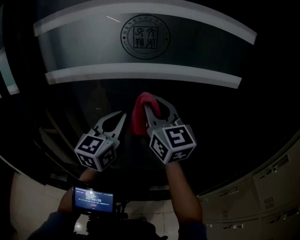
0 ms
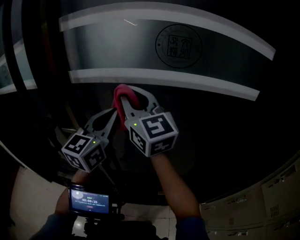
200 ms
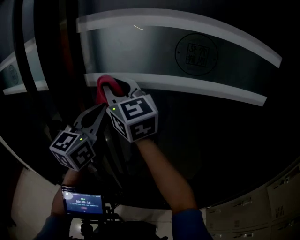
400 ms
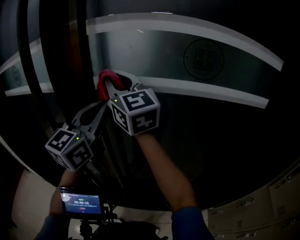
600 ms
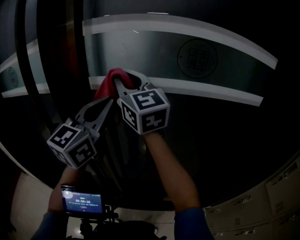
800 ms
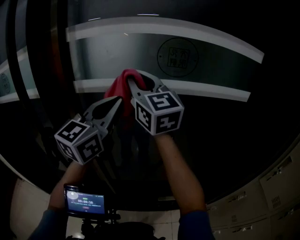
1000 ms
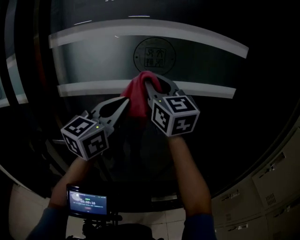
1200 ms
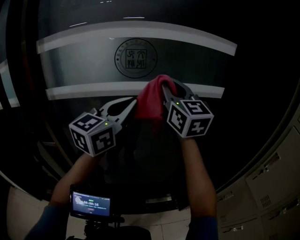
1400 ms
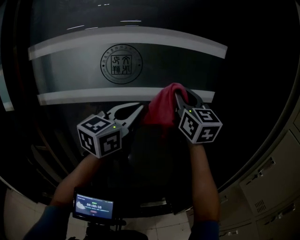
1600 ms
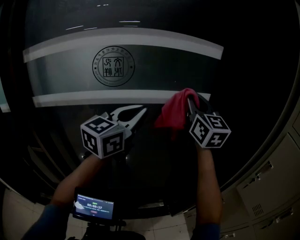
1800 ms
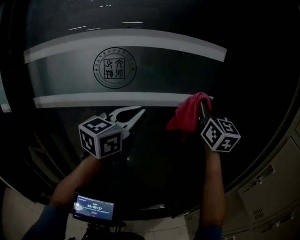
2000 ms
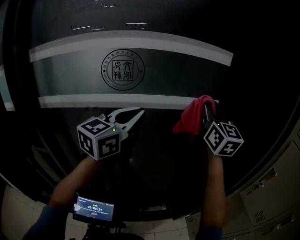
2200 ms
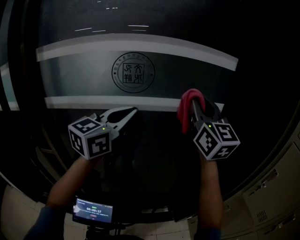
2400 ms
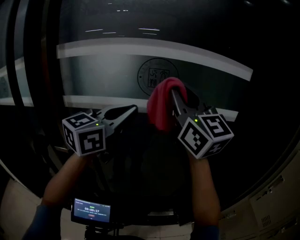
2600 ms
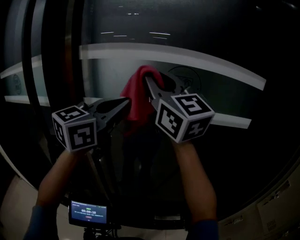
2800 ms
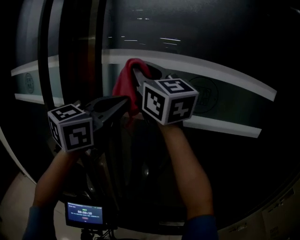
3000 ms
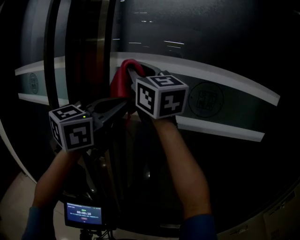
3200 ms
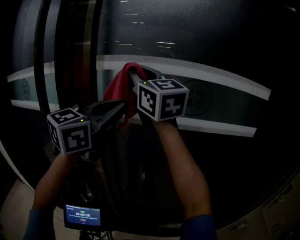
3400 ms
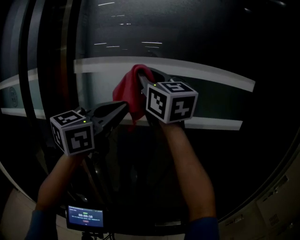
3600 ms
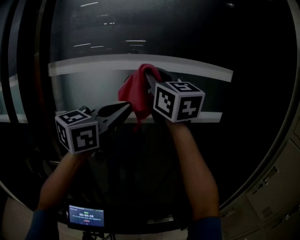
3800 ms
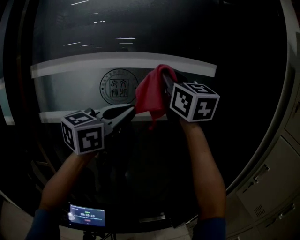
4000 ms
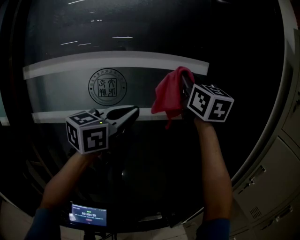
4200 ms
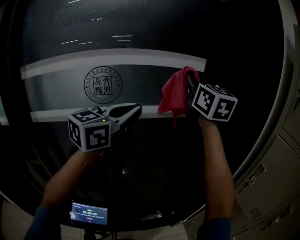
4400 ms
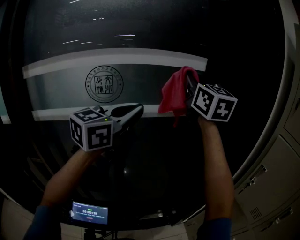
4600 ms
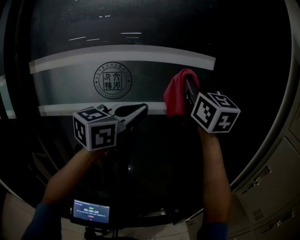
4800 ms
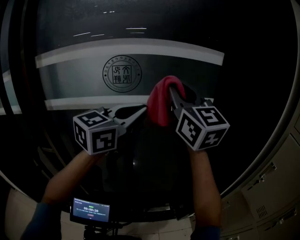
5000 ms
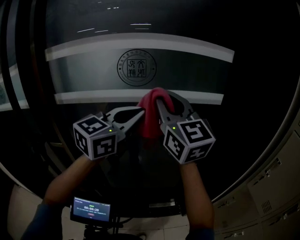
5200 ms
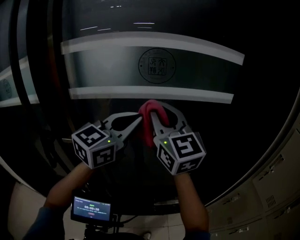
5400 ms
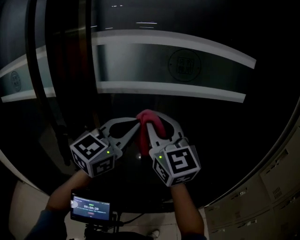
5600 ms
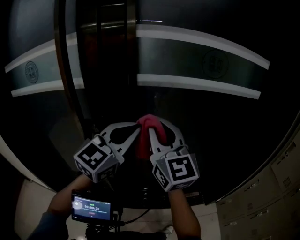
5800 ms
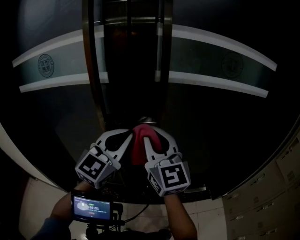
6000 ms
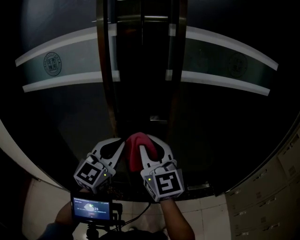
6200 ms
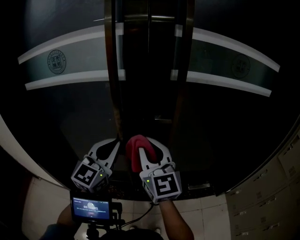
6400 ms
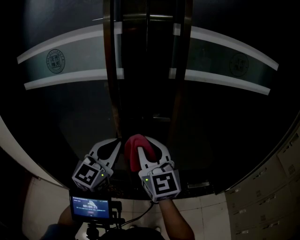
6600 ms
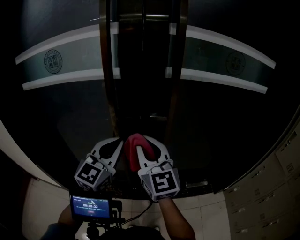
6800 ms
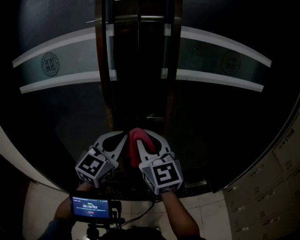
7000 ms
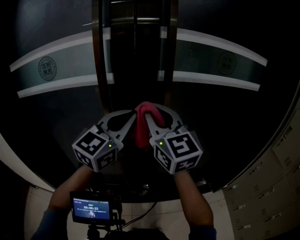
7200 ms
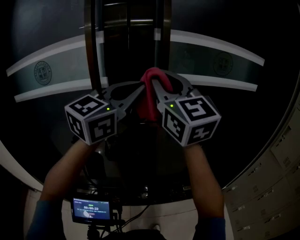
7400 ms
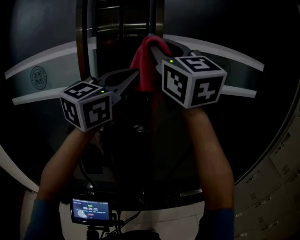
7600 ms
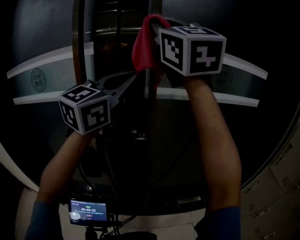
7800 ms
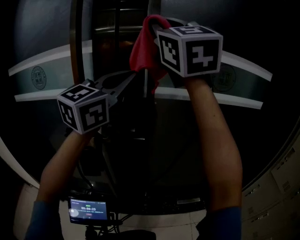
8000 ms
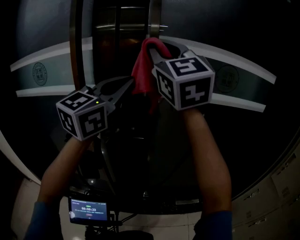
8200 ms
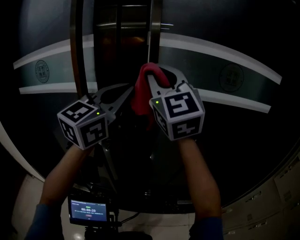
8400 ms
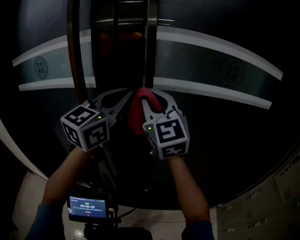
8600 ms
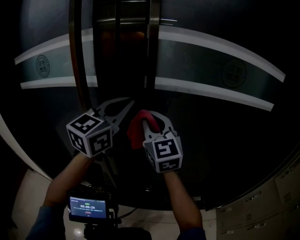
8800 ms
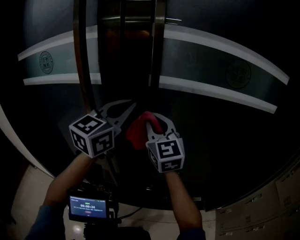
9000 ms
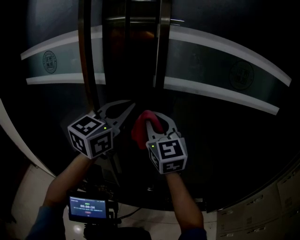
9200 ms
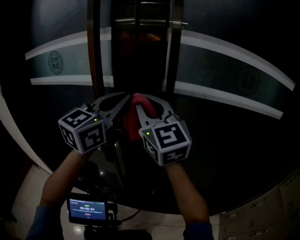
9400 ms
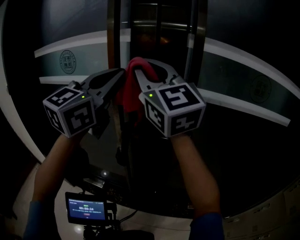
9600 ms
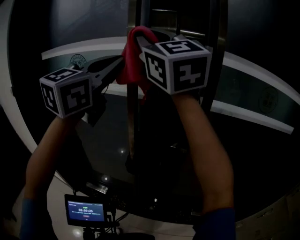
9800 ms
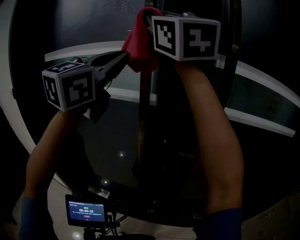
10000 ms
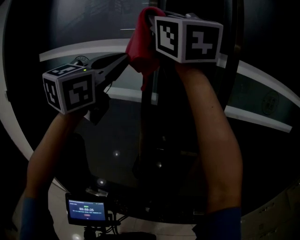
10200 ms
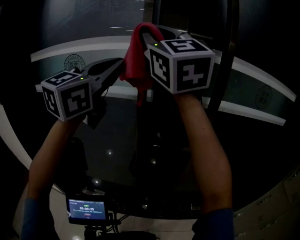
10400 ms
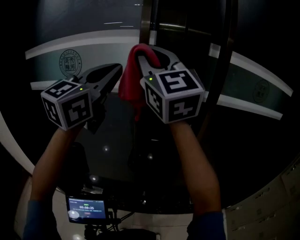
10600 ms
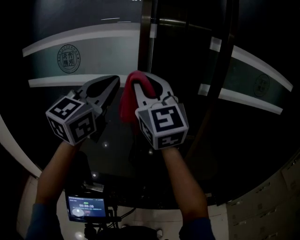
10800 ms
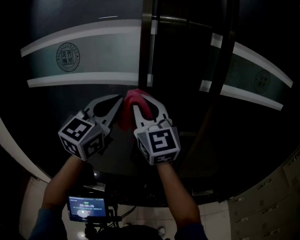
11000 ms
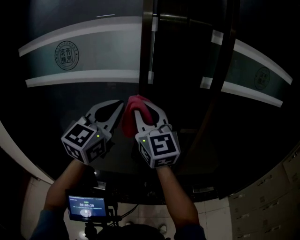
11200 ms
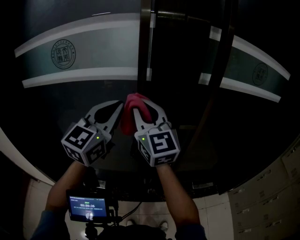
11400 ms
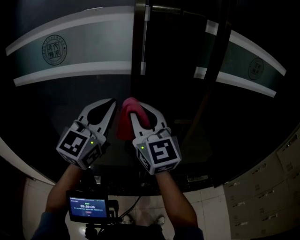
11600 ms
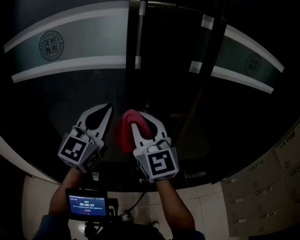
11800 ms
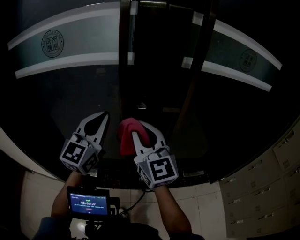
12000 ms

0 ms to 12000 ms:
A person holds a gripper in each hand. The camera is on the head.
0 ms to 1600 ms: The left gripper ends up approximately 15 cm from where it was.
1600 ms to 3000 ms: The right gripper changes place by roughly 40 cm, and swivels about 30 degrees; the left gripper ends up about 30 cm from where it was.
3000 ms to 4400 ms: The left gripper moves approximately 35 cm, and turns by approximately 20 degrees. Meanwhile the right gripper ends up roughly 50 cm from where it was, and changes its angle by some 40 degrees.
4400 ms to 6000 ms: The pair of grippers is taken to the left and backward, roughly 60 cm. The left gripper swivels about 30 degrees.
6000 ms to 7600 ms: Both grippers move upward, roughly 25 cm.
7600 ms to 9000 ms: The right gripper goes approximately 30 cm downward, while the left gripper is displaced downward by some 15 cm.
9000 ms to 10400 ms: The left gripper moves to the left and upward, about 30 cm; the right gripper shifts about 40 cm upward and to the left.
10400 ms to 12000 ms: The grippers both shift downward by about 30 cm. The right gripper swivels approximately 20 degrees.

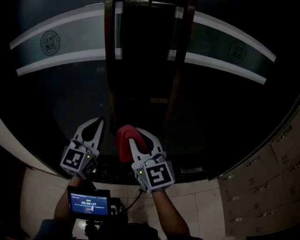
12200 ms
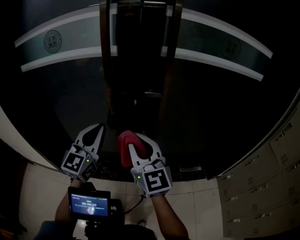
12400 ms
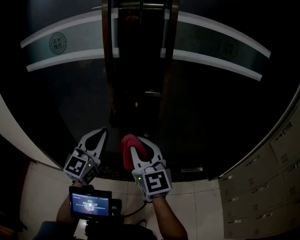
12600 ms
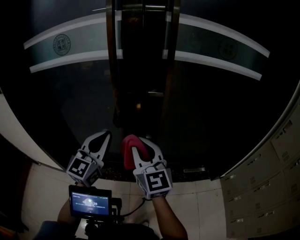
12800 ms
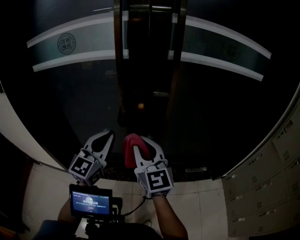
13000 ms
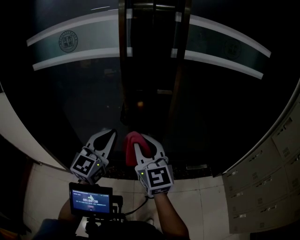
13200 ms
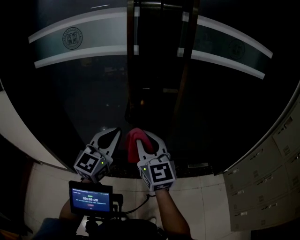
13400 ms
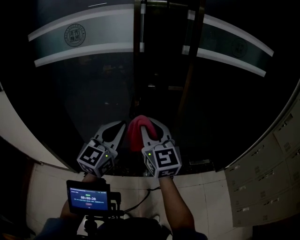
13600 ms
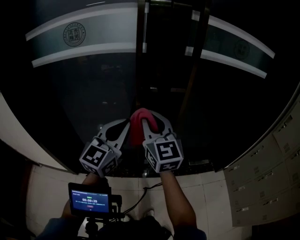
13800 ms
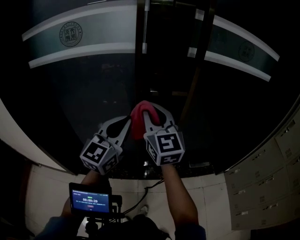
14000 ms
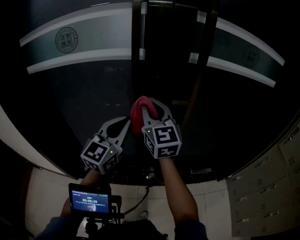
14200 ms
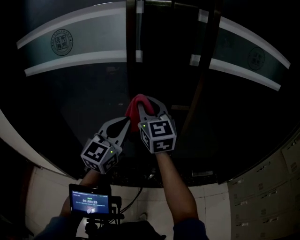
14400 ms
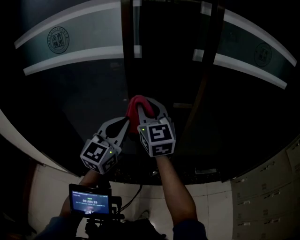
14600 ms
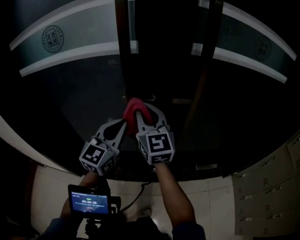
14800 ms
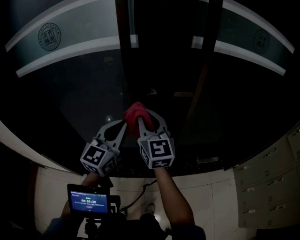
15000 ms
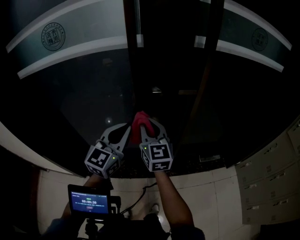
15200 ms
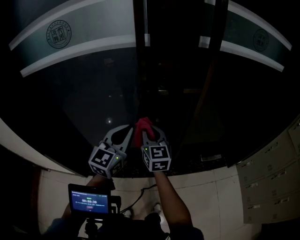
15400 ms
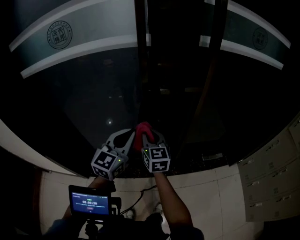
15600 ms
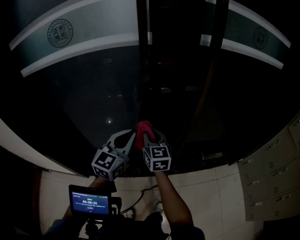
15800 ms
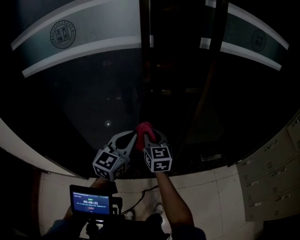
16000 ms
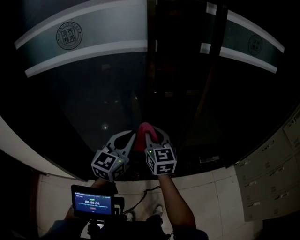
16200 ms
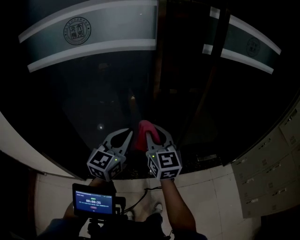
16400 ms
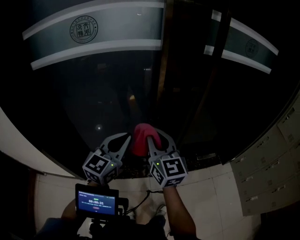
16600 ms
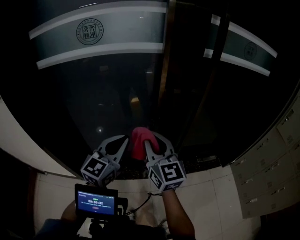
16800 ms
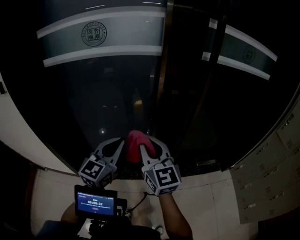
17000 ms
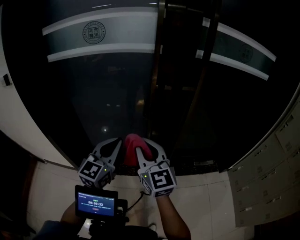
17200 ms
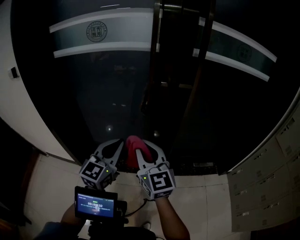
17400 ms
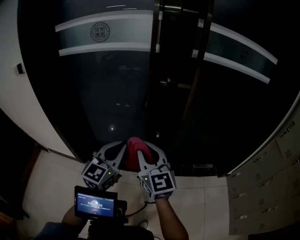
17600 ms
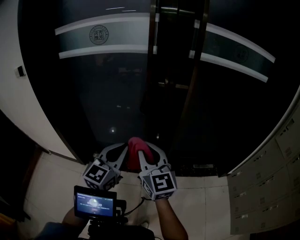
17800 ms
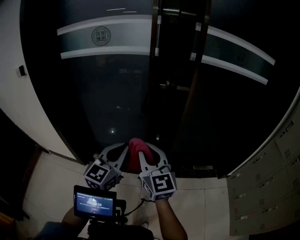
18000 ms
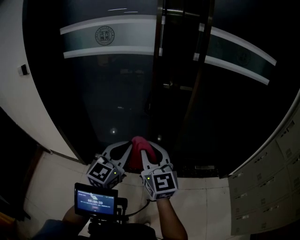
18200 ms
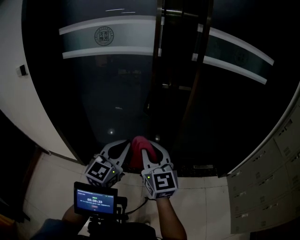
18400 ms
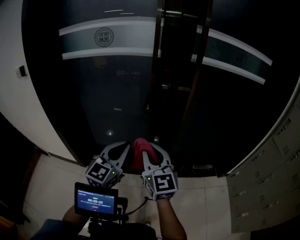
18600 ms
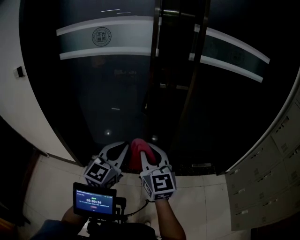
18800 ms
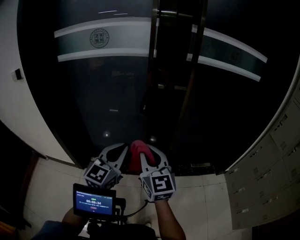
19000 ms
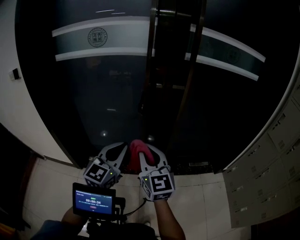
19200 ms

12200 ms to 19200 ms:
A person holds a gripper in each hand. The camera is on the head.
12200 ms to 13600 ms: The right gripper moves about 5 cm. The left gripper is displaced backward by some 10 cm.
13600 ms to 15000 ms: Both grippers travel together forward, about 15 cm.
15000 ms to 16400 ms: Both grippers move backward and to the left, some 10 cm. The right gripper reaches roughly 15 cm downward, then returns.
16400 ms to 17800 ms: Both grippers move backward, about 25 cm.
17800 ms to 19200 ms: There are only small adjustments of the grippers.

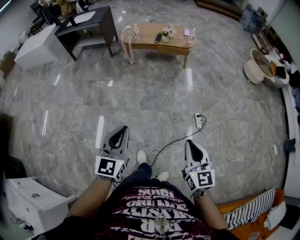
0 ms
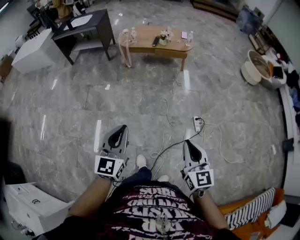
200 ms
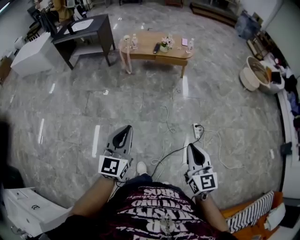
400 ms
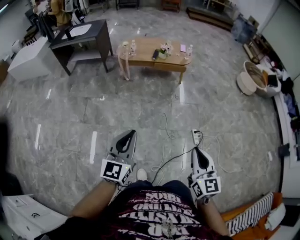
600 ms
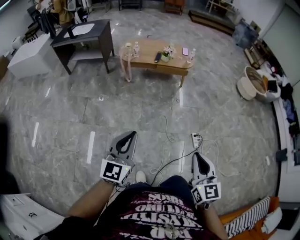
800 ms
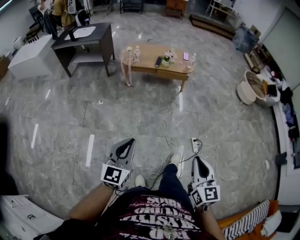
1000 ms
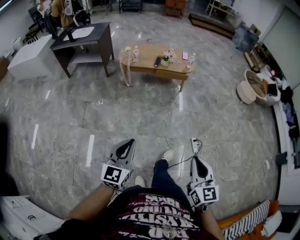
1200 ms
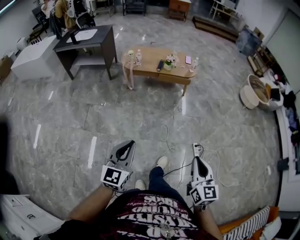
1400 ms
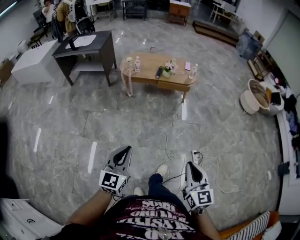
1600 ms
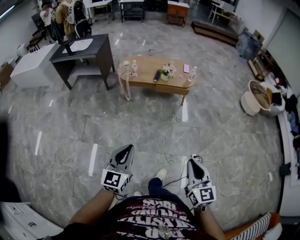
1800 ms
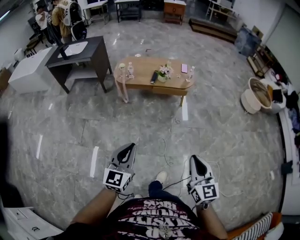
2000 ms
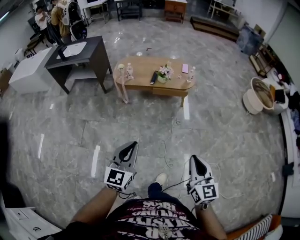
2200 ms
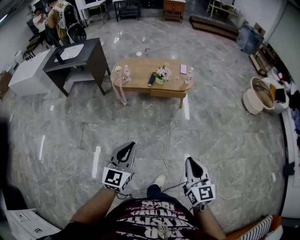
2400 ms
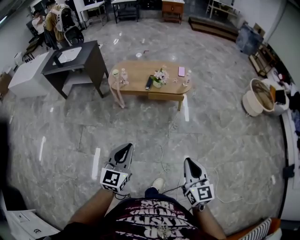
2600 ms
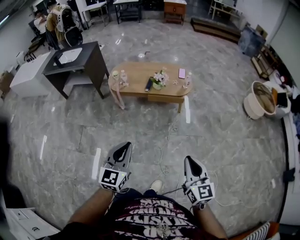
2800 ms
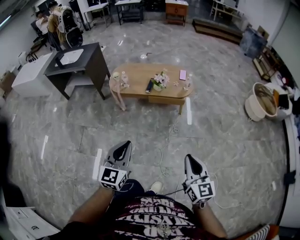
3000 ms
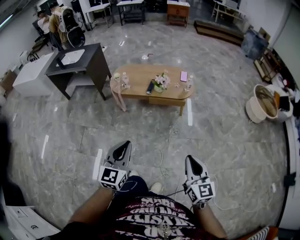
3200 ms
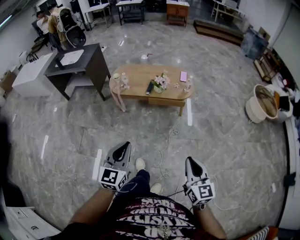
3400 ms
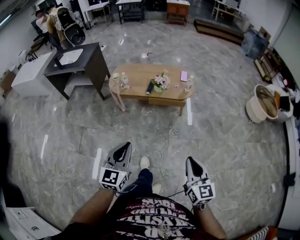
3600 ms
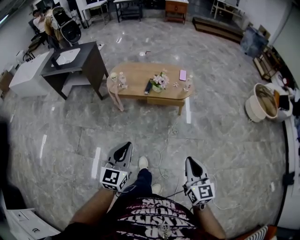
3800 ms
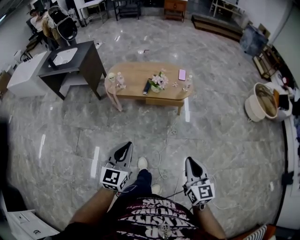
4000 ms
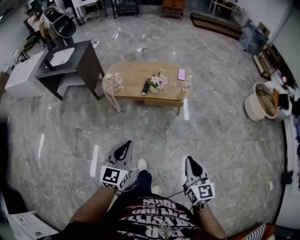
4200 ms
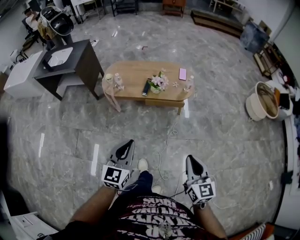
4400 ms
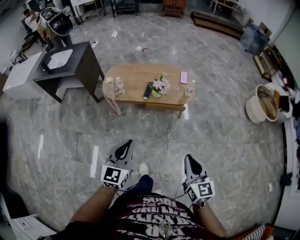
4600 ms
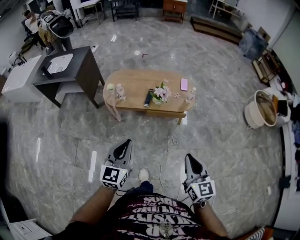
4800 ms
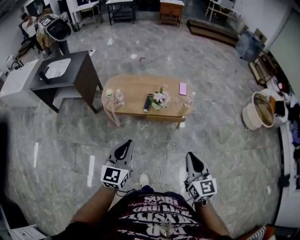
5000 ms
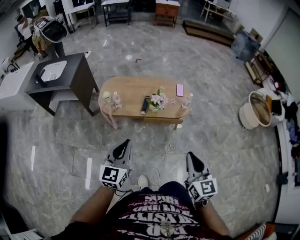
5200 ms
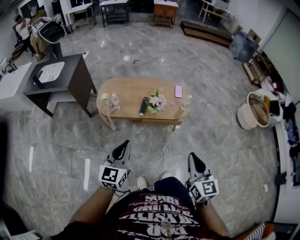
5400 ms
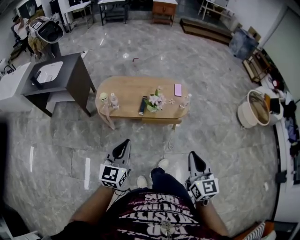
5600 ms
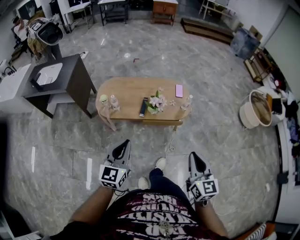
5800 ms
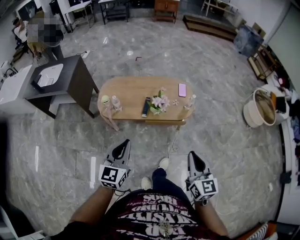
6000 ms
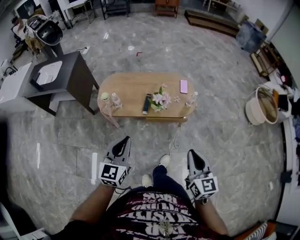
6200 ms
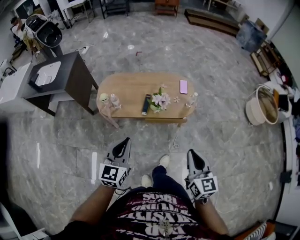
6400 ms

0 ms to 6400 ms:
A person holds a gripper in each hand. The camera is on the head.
0 ms to 1600 ms: The two grippers go about 15 cm forward.
1600 ms to 3200 ms: Both grippers travel together forward and to the right, approximately 30 cm.
3200 ms to 4800 ms: The two grippers go approximately 20 cm forward.
4800 ms to 6400 ms: Both grippers move forward, about 15 cm.
